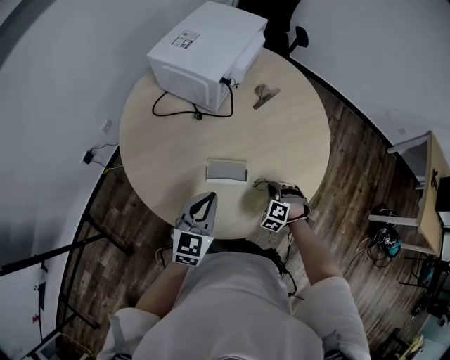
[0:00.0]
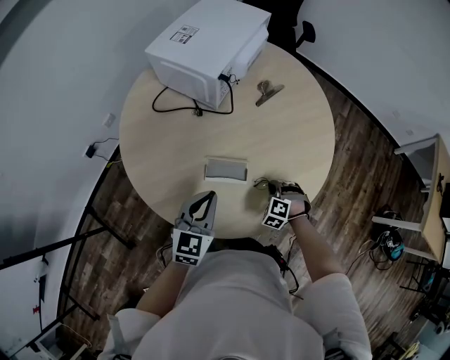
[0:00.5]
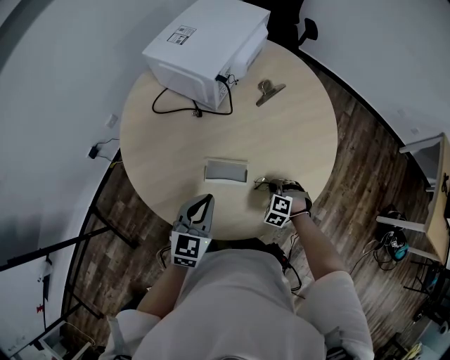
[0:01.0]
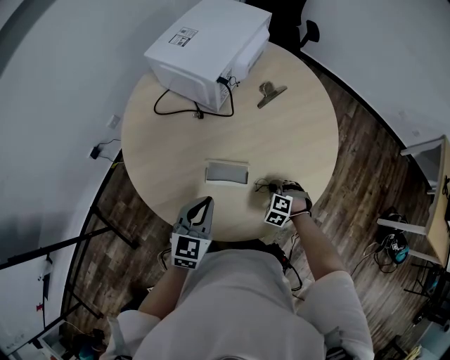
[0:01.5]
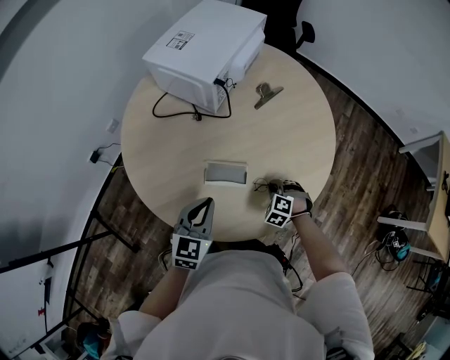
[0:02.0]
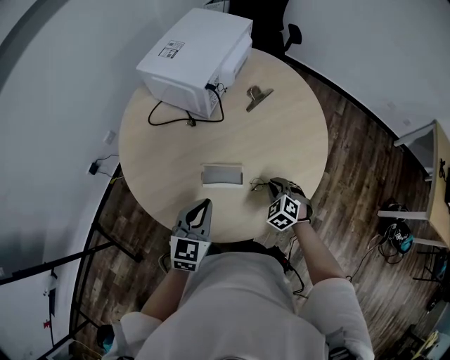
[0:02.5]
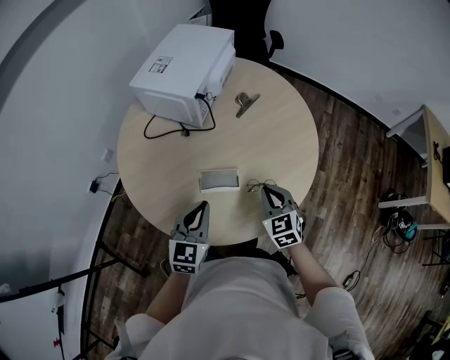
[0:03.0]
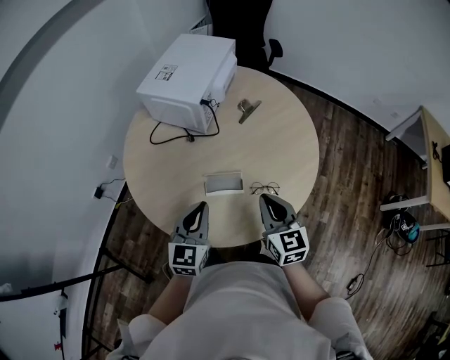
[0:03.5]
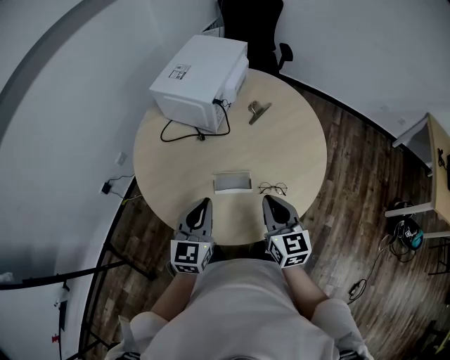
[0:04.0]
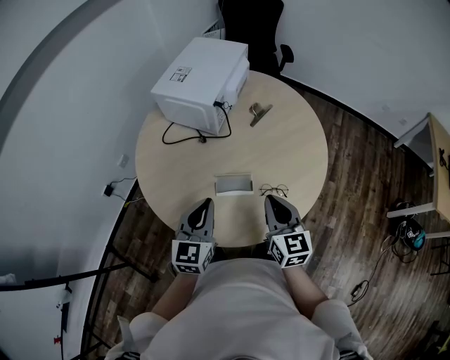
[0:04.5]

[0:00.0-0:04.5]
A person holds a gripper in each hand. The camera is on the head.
0:00.0 to 0:02.0: The grippers stay close to where they were, moving slightly.
0:02.0 to 0:04.5: The right gripper heads upward, covering some 30 cm, and angles its fingers upward, by approximately 50 degrees. Meanwhile the left gripper shifts some 10 cm upward.

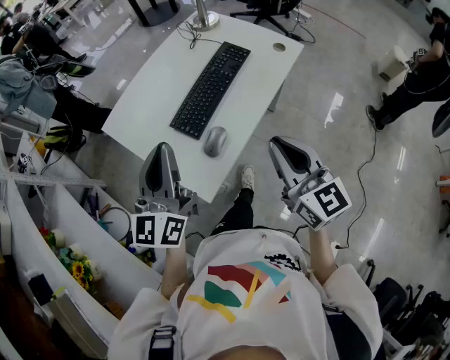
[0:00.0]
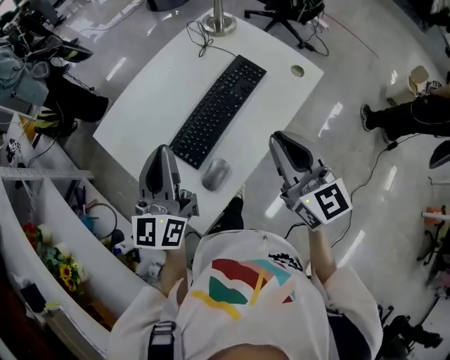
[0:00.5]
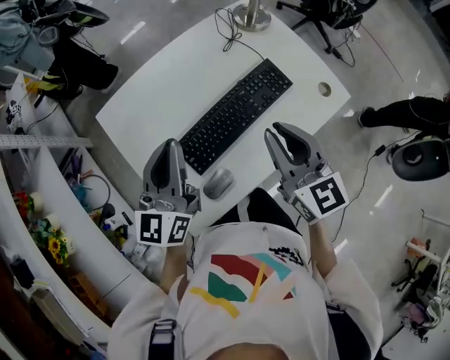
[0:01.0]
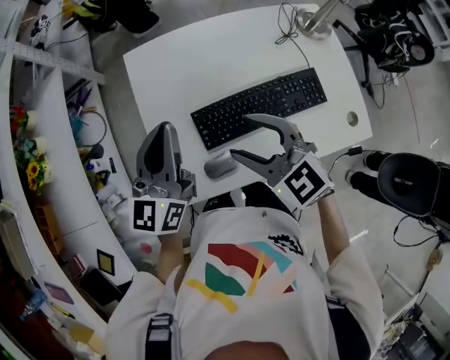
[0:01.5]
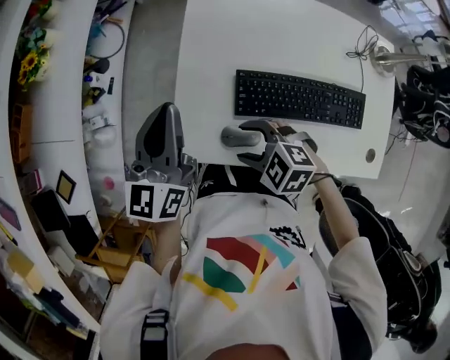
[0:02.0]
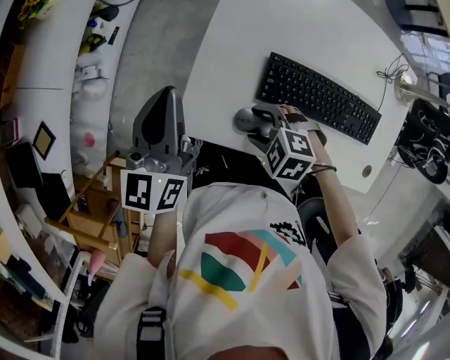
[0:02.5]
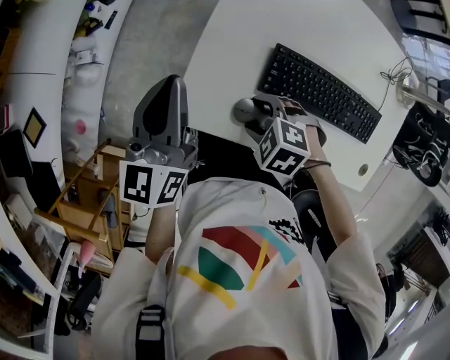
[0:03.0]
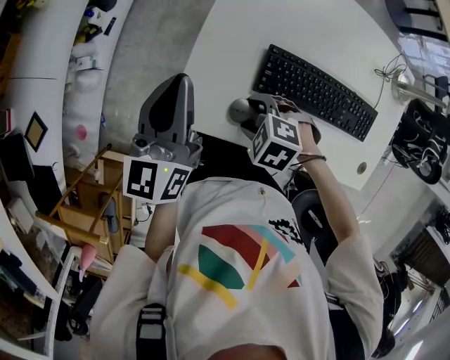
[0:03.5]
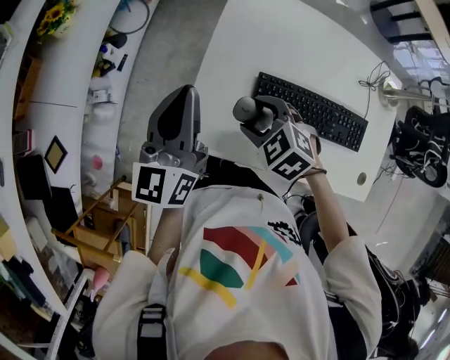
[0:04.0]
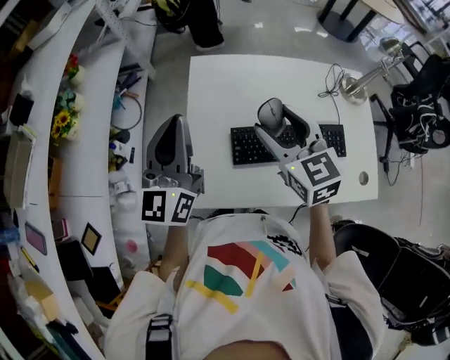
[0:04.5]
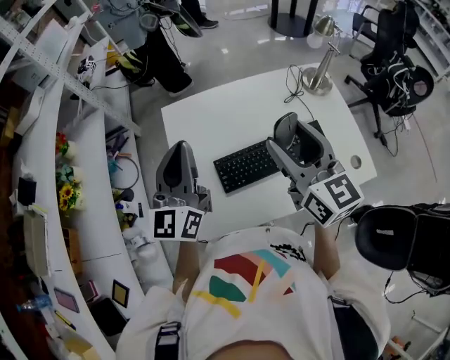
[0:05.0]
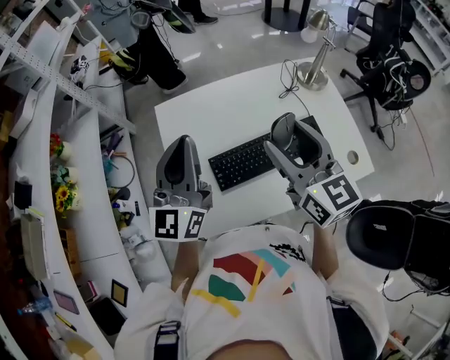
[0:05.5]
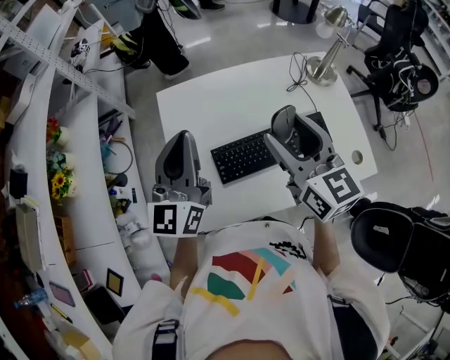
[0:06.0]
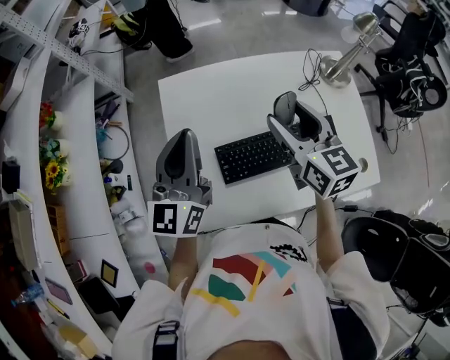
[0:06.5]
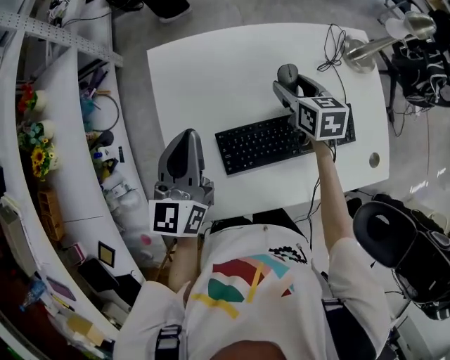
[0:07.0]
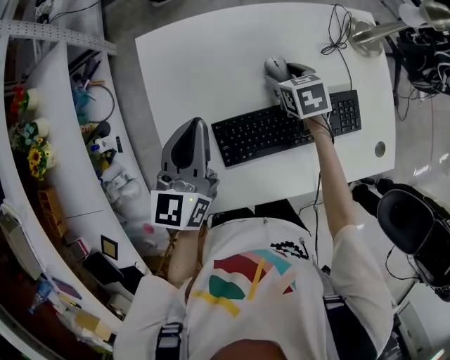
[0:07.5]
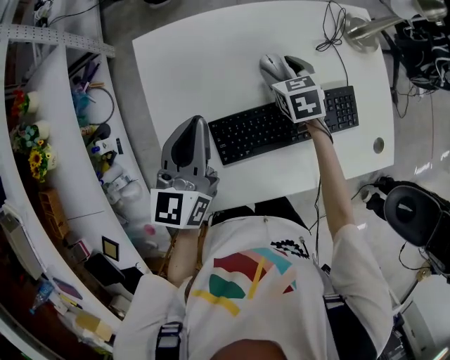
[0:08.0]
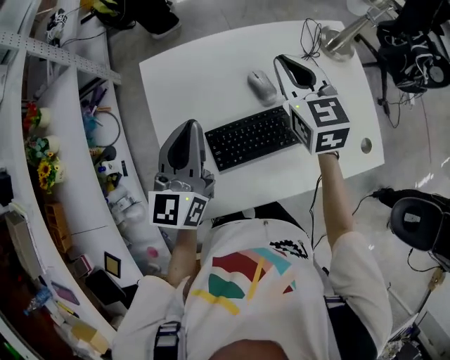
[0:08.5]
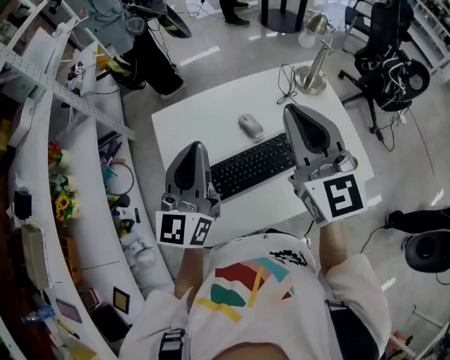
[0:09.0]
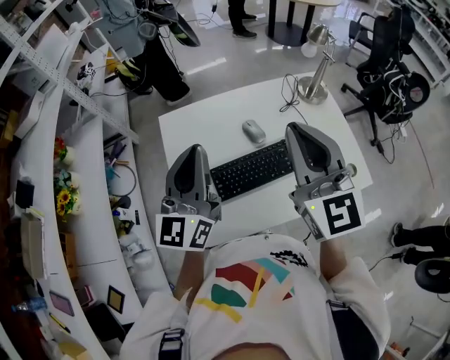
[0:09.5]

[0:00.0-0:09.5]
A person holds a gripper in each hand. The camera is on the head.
0:00.0 to 0:02.0: The left gripper ends up some 15 cm from where it was, and swivels about 60 degrees; the right gripper shifts about 20 cm downward, points its fingers some 50 degrees further downward, and opens its fingers.
0:02.0 to 0:04.0: The right gripper reaches approximately 10 cm downward, then returns; the left gripper goes downward and returns, some 5 cm each way.
0:04.0 to 0:05.5: The left gripper shifts by some 25 cm, and swivels roughly 30 degrees. The right gripper is displaced upward by approximately 25 cm, and angles its fingers upward, by approximately 60 degrees.
0:05.5 to 0:07.5: The left gripper shifts approximately 20 cm downward and forward, and turns by approximately 30 degrees, while the right gripper is displaced downward and forward by roughly 40 cm, and angles its fingers downward, by roughly 50 degrees.
0:07.5 to 0:09.5: The left gripper goes about 20 cm upward and backward, and rotates roughly 30 degrees. Meanwhile the right gripper goes approximately 50 cm upward and backward, angles its fingers upward, by roughly 60 degrees, and closes.

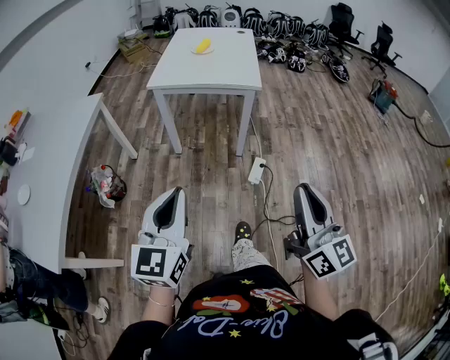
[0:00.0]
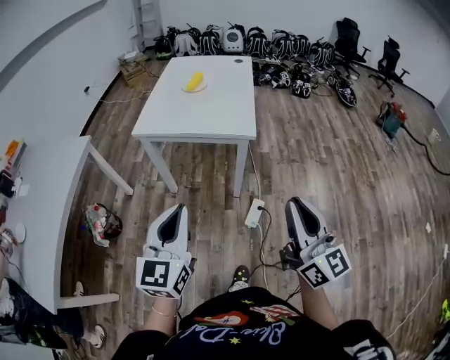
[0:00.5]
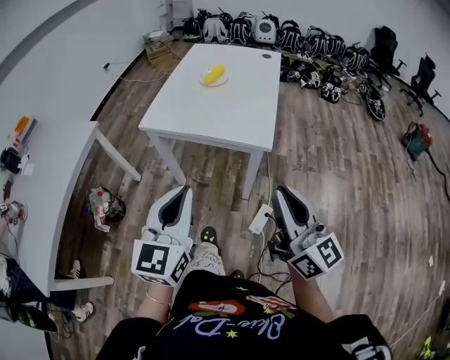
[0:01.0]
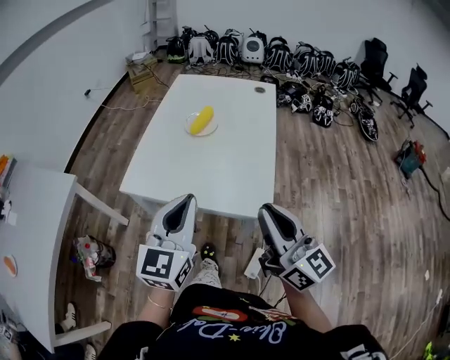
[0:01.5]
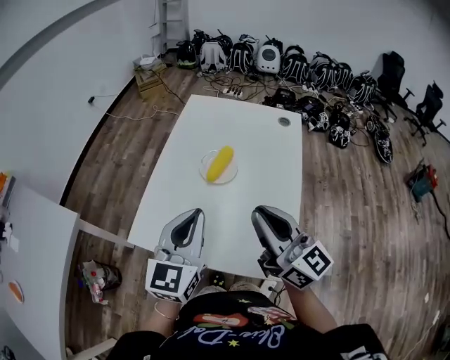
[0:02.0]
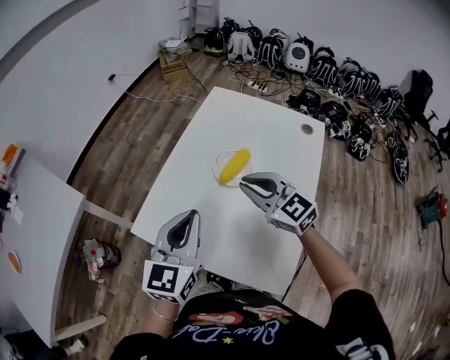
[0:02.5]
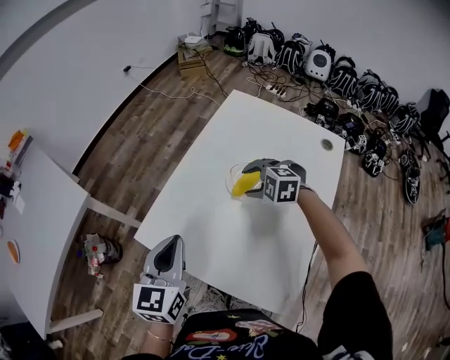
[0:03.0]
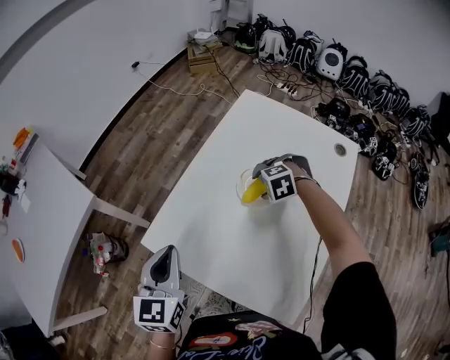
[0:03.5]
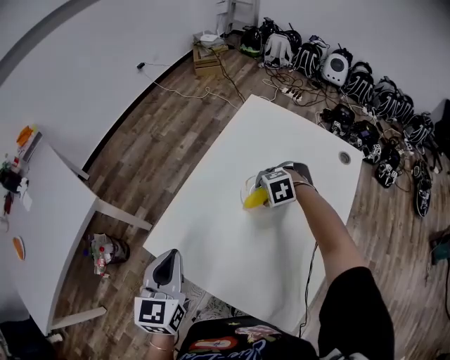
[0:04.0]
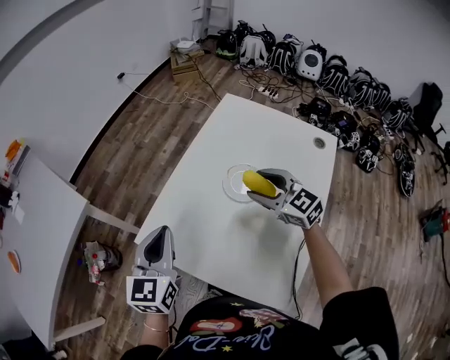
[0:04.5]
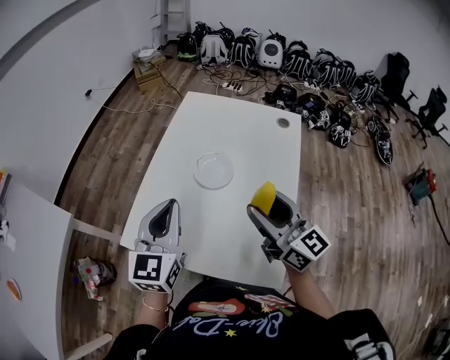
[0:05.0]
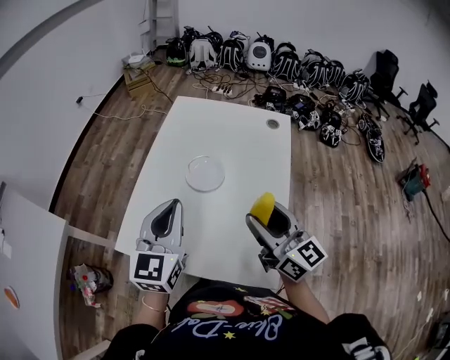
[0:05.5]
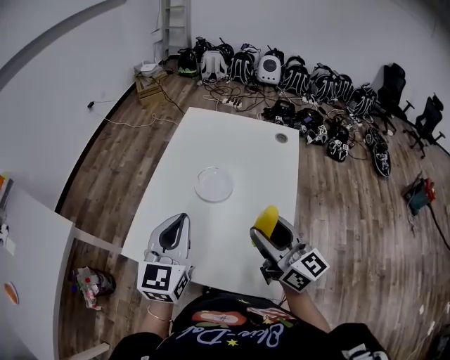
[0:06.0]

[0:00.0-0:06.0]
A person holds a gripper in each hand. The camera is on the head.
0:00.0 to 0:02.0: The pair of grippers is taken forward, approximately 80 cm. The right gripper turns by approximately 30 degrees.
0:02.0 to 0:04.0: The left gripper shifts by some 15 cm, and rotates about 30 degrees; the right gripper goes roughly 30 cm downward, tips its fingers downward by approximately 90 degrees, and opens up.
0:04.0 to 0:06.0: The right gripper travels upward by roughly 25 cm, and tilts its fingers approximately 90 degrees upward. Meanwhile the left gripper ends up some 15 cm from where it was, and swivels approximately 30 degrees.

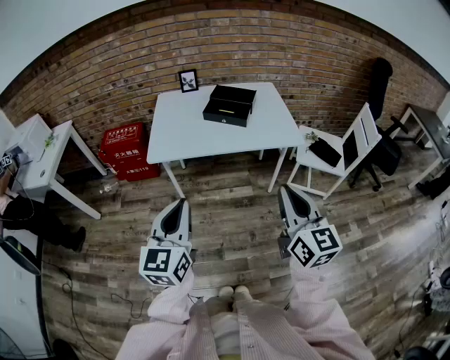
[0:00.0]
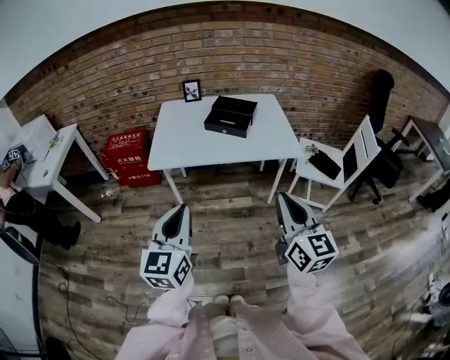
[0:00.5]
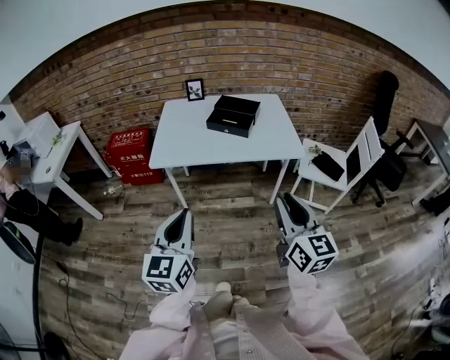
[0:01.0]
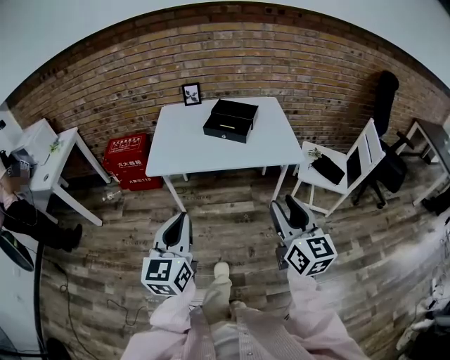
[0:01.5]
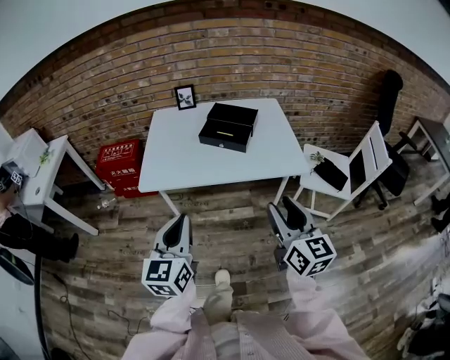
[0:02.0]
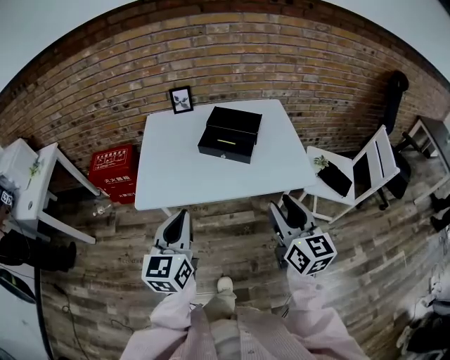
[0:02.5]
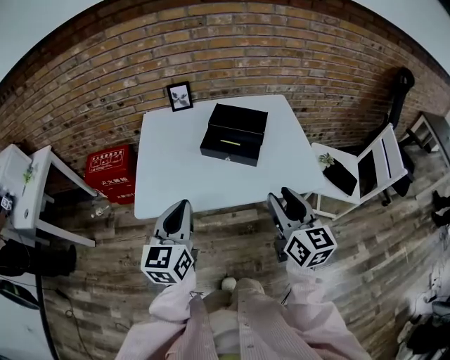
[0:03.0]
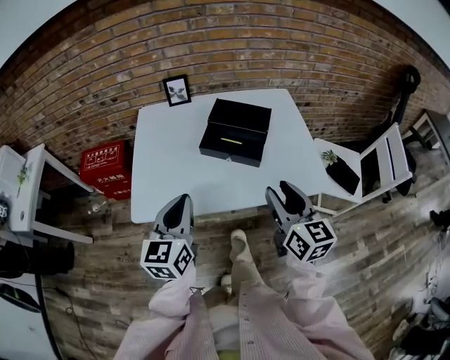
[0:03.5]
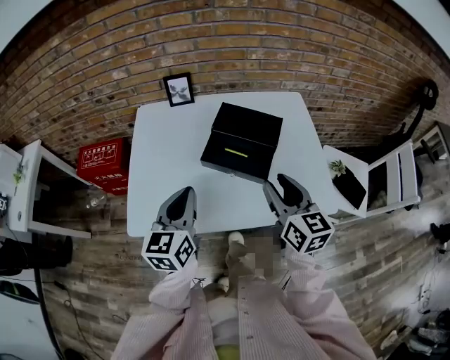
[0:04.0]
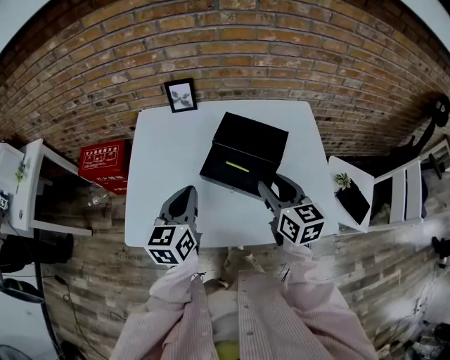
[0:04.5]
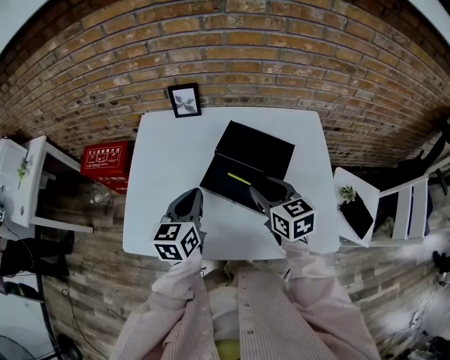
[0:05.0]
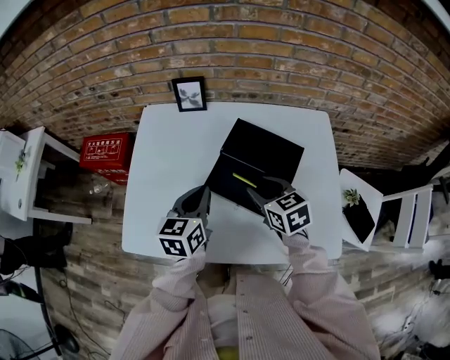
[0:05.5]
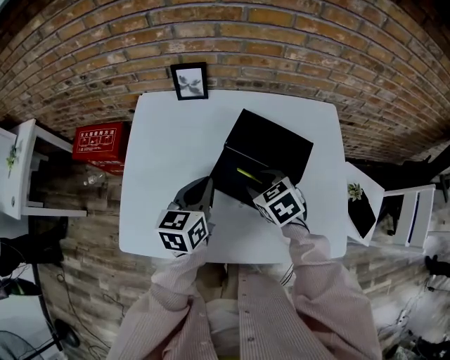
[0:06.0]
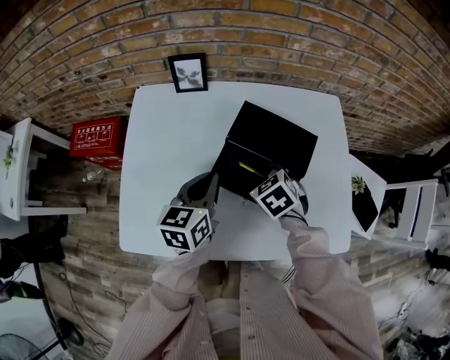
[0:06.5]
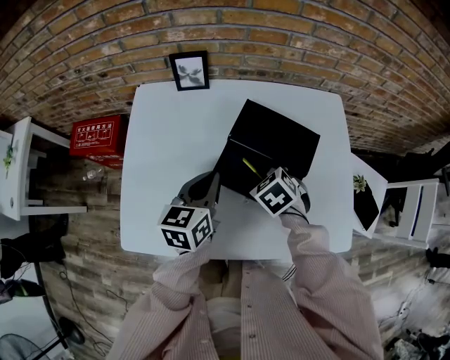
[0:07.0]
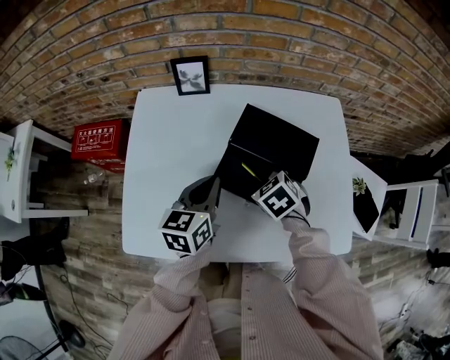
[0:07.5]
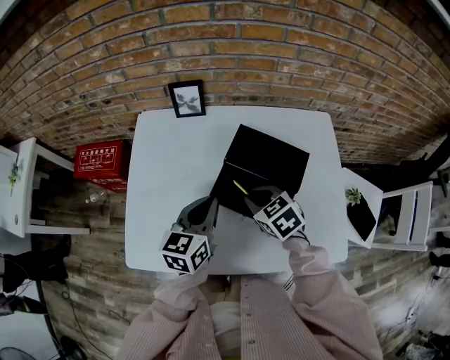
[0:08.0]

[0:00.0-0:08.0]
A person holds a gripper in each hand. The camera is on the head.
0:00.0 to 0:02.0: Both grippers move forward, approximately 10 cm. The right gripper opens.
0:02.0 to 0:04.0: The grippers both shift forward by roughly 35 cm.
0:04.0 to 0:06.0: Both grippers move forward and downward, about 20 cm. The right gripper tilts its fingers approximately 40 degrees downward.
0:06.0 to 0:08.0: The right gripper closes.
